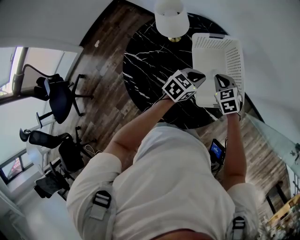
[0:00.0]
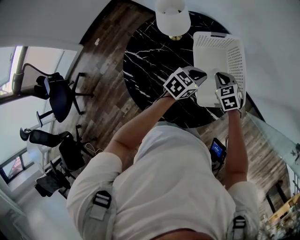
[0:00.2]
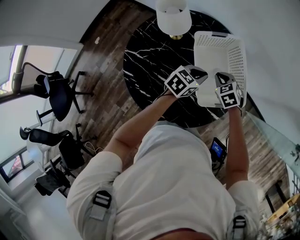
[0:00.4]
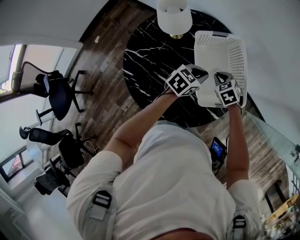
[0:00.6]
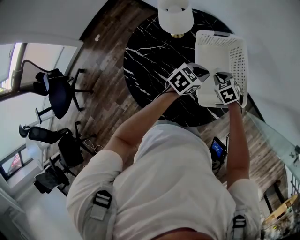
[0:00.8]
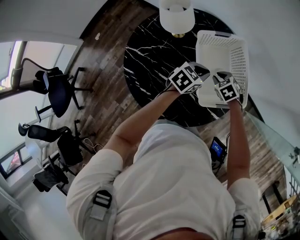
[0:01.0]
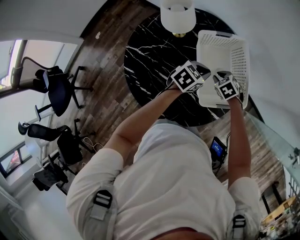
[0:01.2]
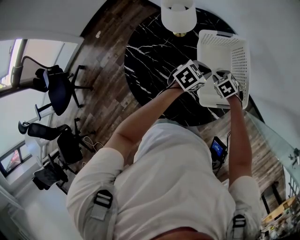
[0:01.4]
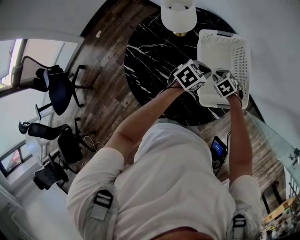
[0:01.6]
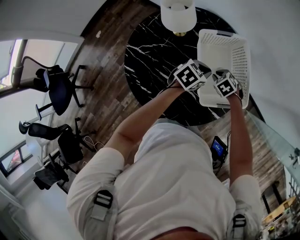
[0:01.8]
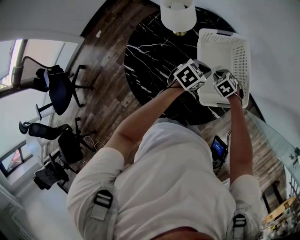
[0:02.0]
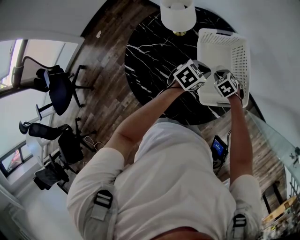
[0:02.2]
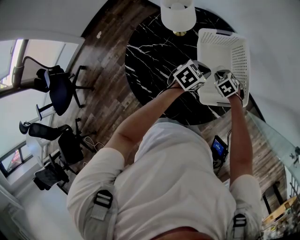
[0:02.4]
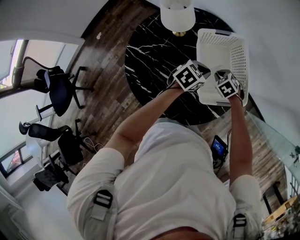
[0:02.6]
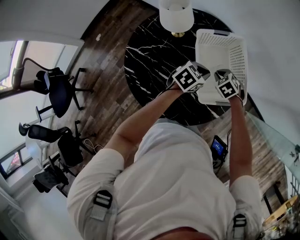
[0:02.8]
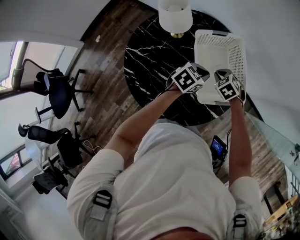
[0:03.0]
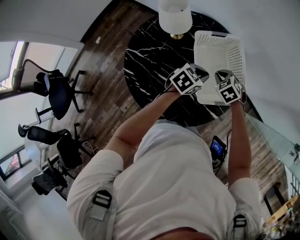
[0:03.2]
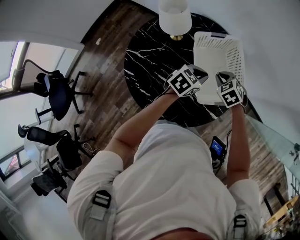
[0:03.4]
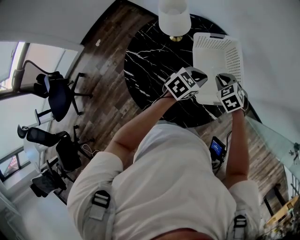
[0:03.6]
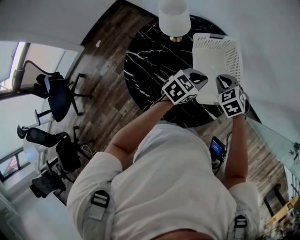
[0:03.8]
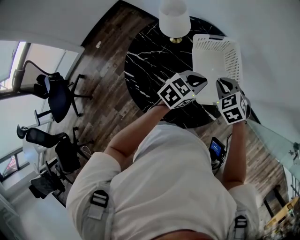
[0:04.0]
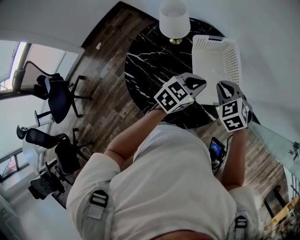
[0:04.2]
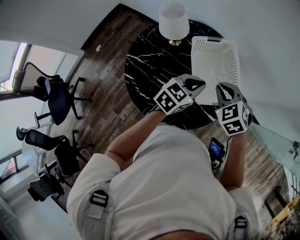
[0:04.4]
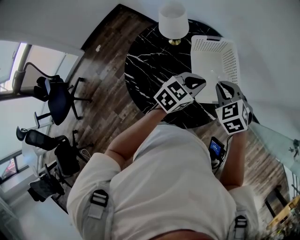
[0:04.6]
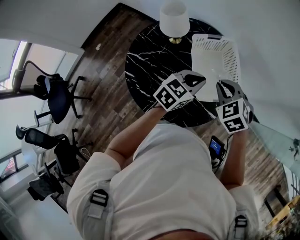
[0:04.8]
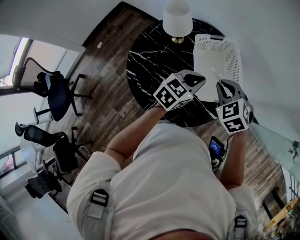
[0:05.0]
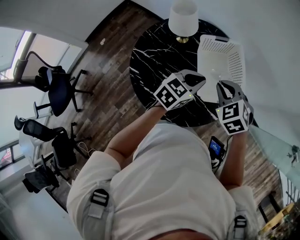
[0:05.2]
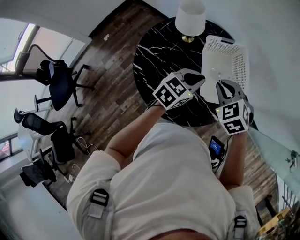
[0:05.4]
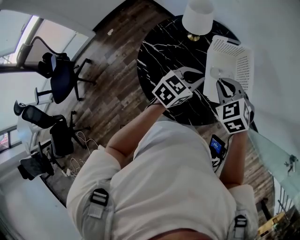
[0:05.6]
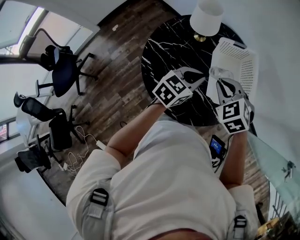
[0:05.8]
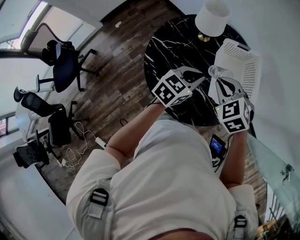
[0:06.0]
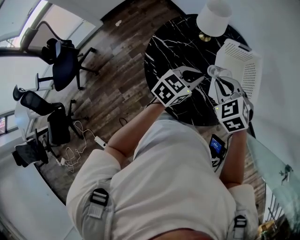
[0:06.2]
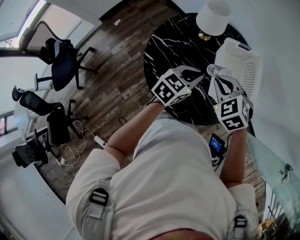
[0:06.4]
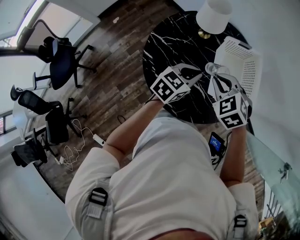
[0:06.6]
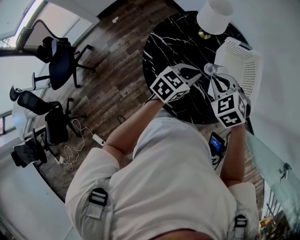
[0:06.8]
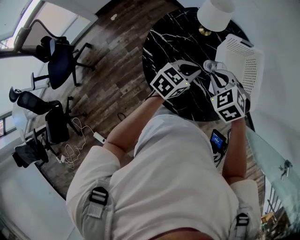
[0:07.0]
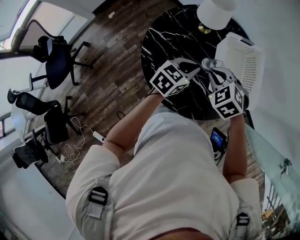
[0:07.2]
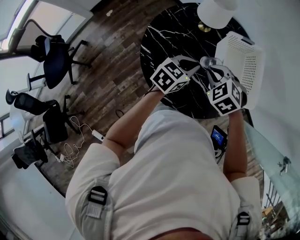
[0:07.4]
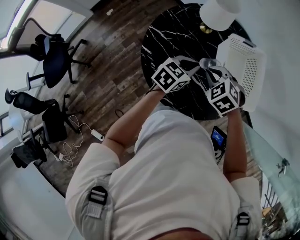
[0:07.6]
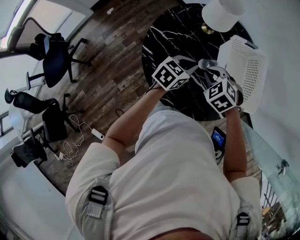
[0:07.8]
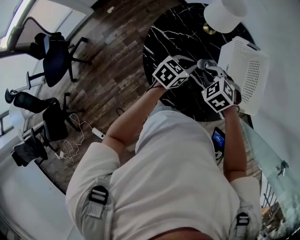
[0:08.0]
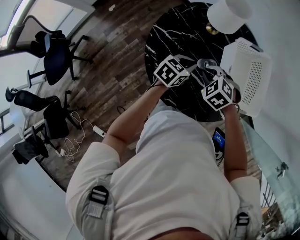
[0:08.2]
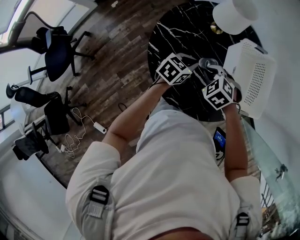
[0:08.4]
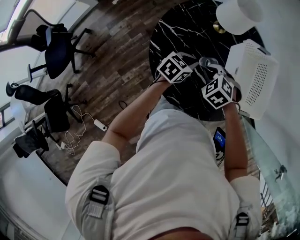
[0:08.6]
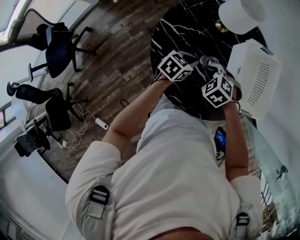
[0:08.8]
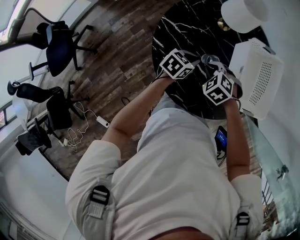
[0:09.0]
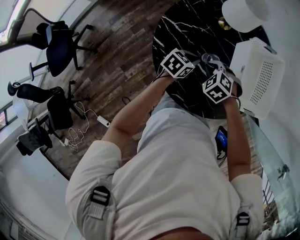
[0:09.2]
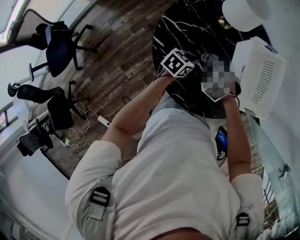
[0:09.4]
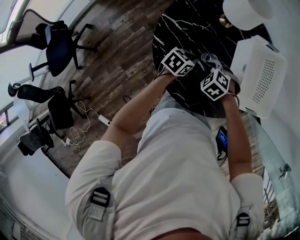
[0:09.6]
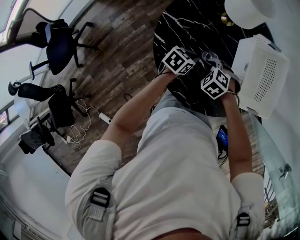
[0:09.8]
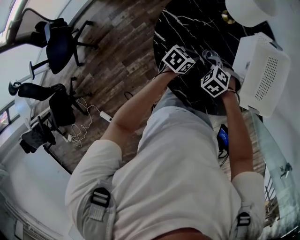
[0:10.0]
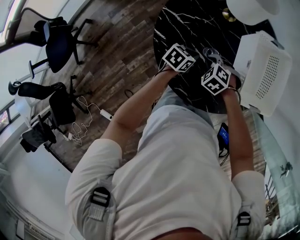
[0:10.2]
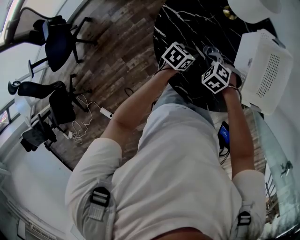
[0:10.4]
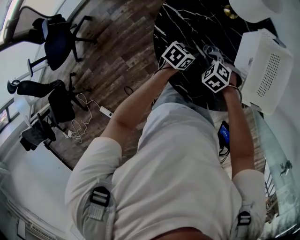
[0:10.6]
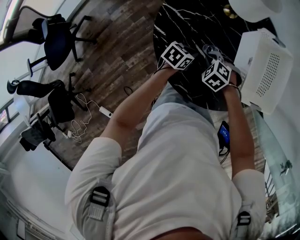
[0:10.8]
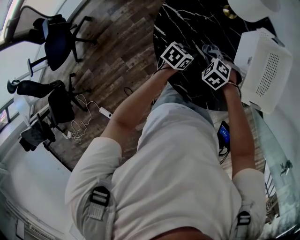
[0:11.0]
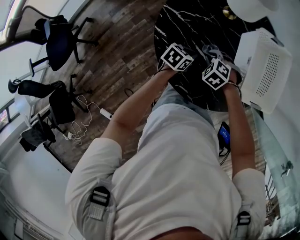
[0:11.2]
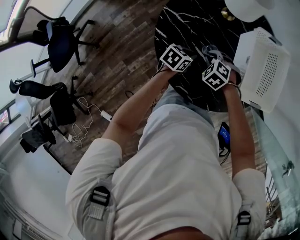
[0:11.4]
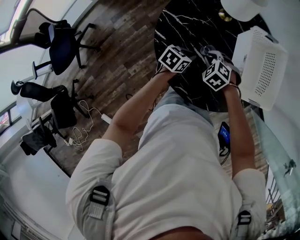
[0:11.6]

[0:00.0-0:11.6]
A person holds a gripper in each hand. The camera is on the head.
0:00.0 to 0:01.4: The right gripper goes roughly 10 cm downward, and rotates approximately 20 degrees.
0:01.4 to 0:02.8: The grippers move only a little.
0:02.8 to 0:04.4: The left gripper goes some 15 cm upward and backward. The right gripper moves upward, approximately 20 cm.
0:04.4 to 0:05.8: Both grippers travel together to the left, about 10 cm.
0:05.8 to 0:07.2: The left gripper travels to the left by about 5 cm, while the right gripper moves to the left and downward, approximately 10 cm.
0:07.2 to 0:08.8: The grippers both shift downward and to the left by roughly 15 cm.
0:08.8 to 0:10.2: The two grippers go roughly 10 cm downward.
0:10.2 to 0:11.6: There are only small adjustments of the grippers.

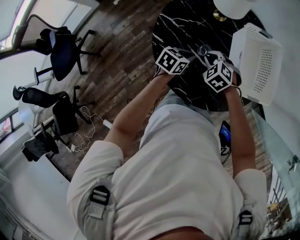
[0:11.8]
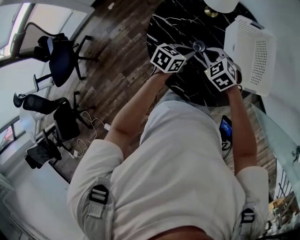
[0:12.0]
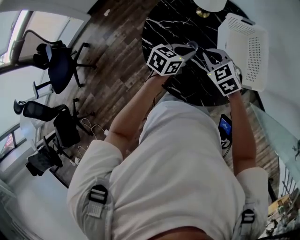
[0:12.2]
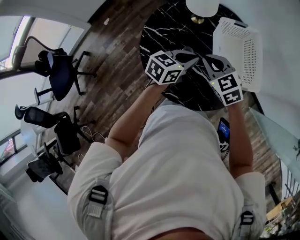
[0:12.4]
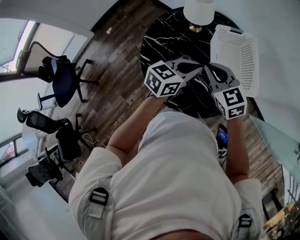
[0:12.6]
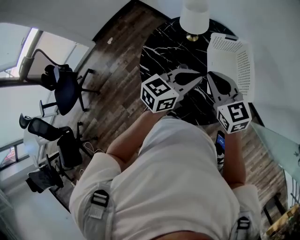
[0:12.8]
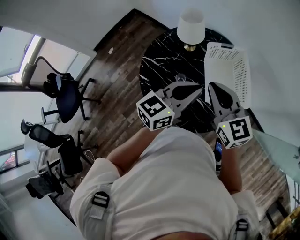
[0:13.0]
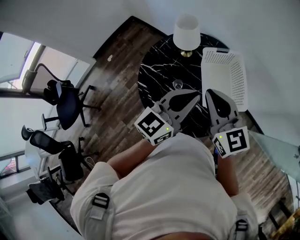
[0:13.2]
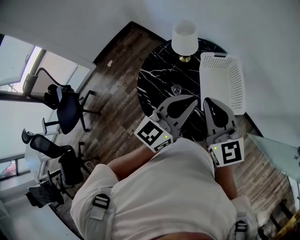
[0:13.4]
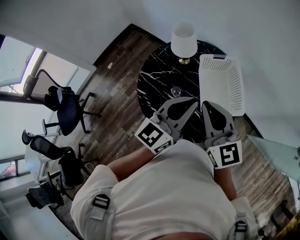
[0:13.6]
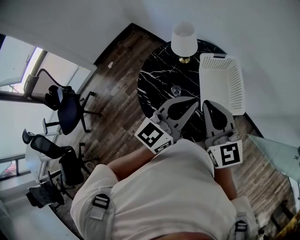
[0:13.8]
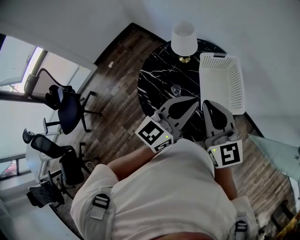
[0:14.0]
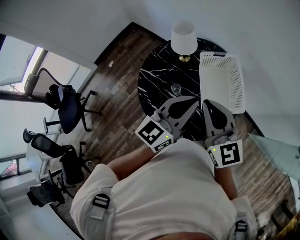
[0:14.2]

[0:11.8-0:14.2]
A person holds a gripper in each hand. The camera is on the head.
0:11.8 to 0:13.0: The right gripper is displaced upward by about 30 cm, and tilts its fingers approximately 50 degrees upward. The left gripper shifts about 35 cm upward and to the right, and tips its fingers upward by some 40 degrees.
0:13.0 to 0:14.2: The right gripper moves upward, some 5 cm; the left gripper shifts by about 5 cm.

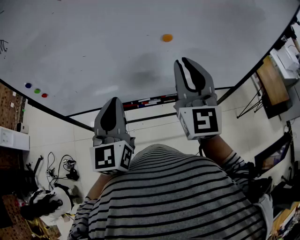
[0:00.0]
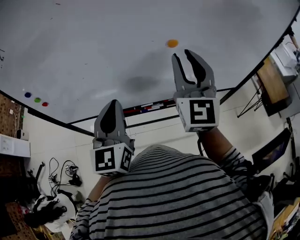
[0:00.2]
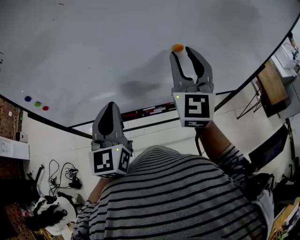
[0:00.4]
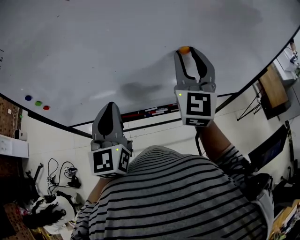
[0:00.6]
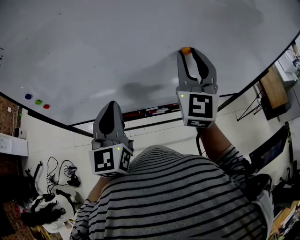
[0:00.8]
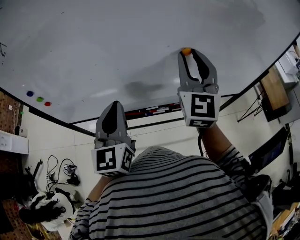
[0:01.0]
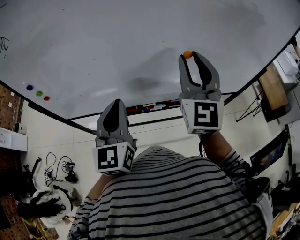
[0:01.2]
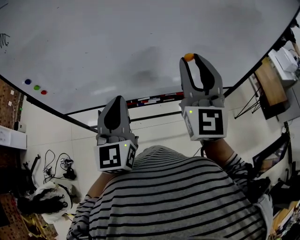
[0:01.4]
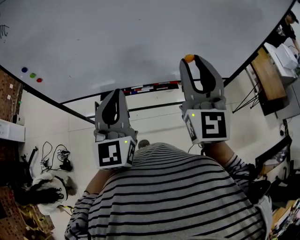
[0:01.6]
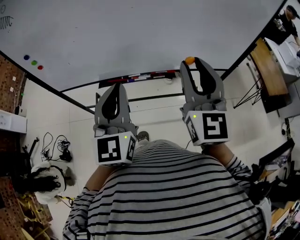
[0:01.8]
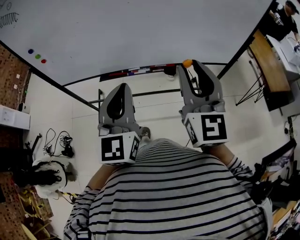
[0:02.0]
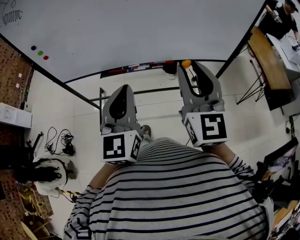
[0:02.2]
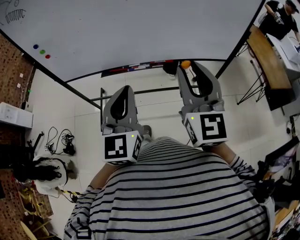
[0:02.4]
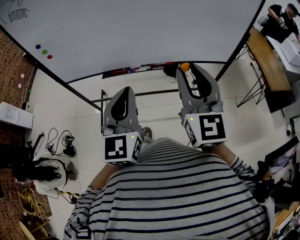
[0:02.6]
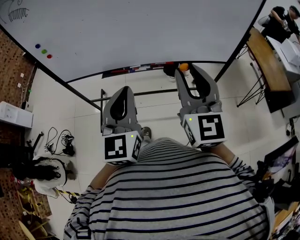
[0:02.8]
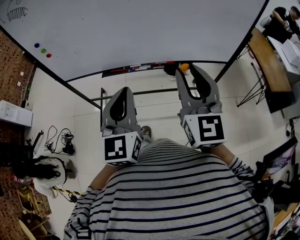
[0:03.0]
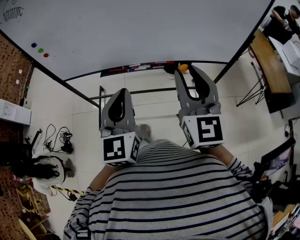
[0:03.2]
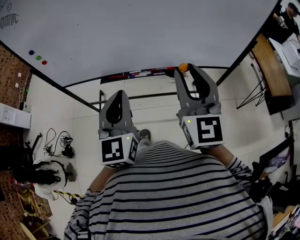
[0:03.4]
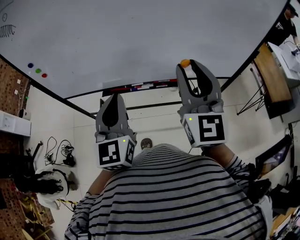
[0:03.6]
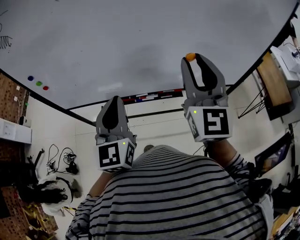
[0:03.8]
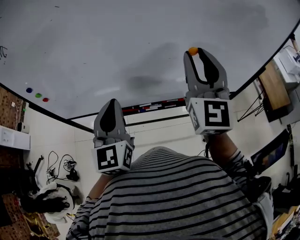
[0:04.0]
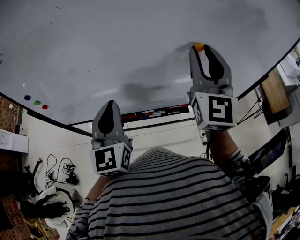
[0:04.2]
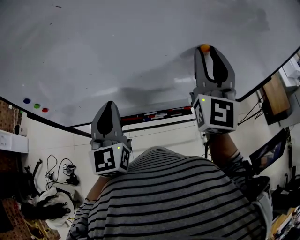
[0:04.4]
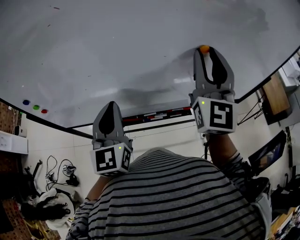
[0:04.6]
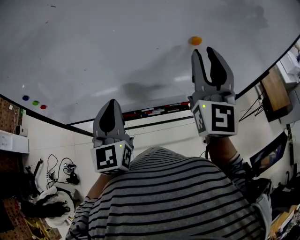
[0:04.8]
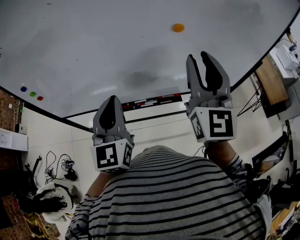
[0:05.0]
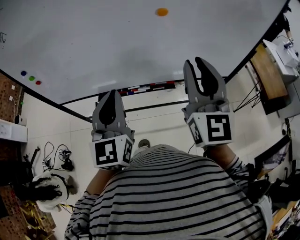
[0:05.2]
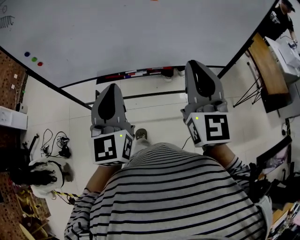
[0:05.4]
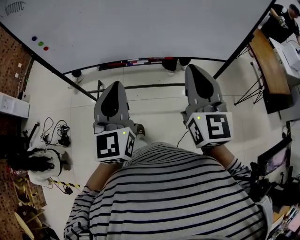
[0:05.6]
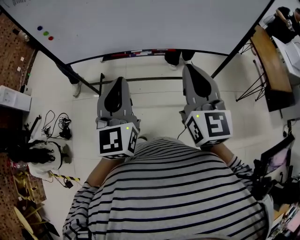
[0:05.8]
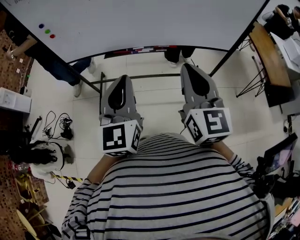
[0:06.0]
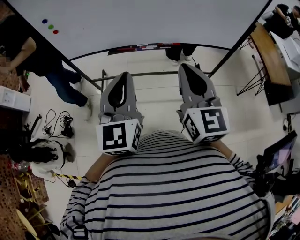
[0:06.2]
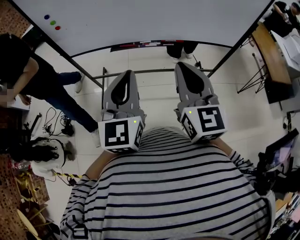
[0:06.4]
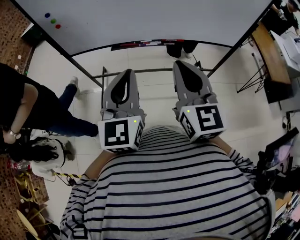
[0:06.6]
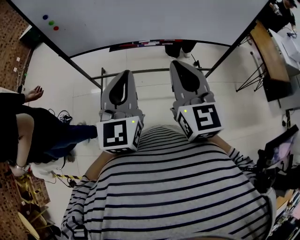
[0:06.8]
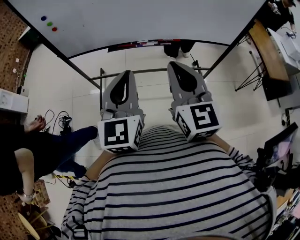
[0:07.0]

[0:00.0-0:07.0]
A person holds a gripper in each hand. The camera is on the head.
0:00.0 to 0:01.4: The right gripper reaches approximately 10 cm forward, then returns.
0:01.4 to 0:02.8: The left gripper goes some 20 cm backward and to the right. The right gripper is displaced backward by approximately 20 cm.
0:02.8 to 0:04.2: The left gripper moves forward and to the left, about 30 cm; the right gripper heads forward, covering about 30 cm.
0:04.2 to 0:05.6: The left gripper goes some 30 cm backward and to the right. Meanwhile the right gripper moves backward, about 30 cm, turns by approximately 20 degrees, and closes up.
0:05.6 to 0:07.0: The left gripper heads backward, covering approximately 5 cm; the right gripper travels to the left and backward by roughly 15 cm.

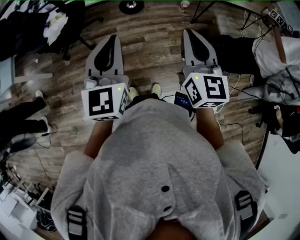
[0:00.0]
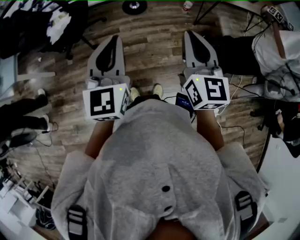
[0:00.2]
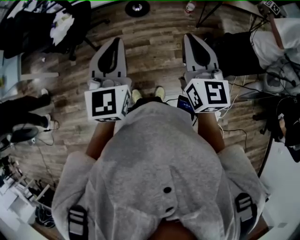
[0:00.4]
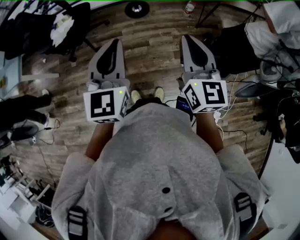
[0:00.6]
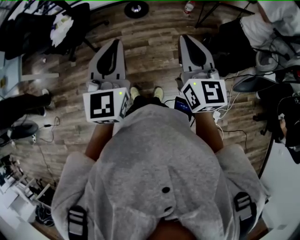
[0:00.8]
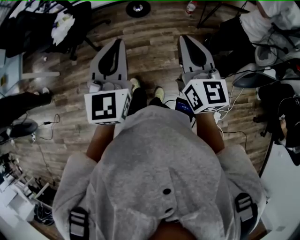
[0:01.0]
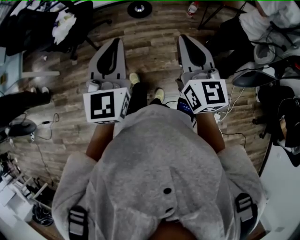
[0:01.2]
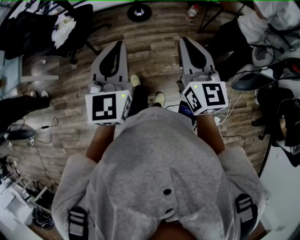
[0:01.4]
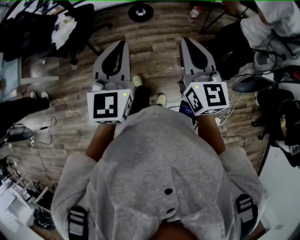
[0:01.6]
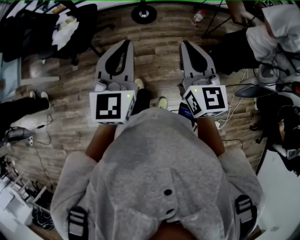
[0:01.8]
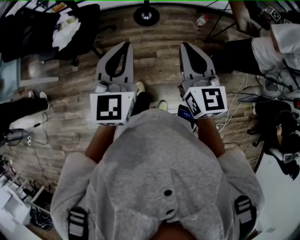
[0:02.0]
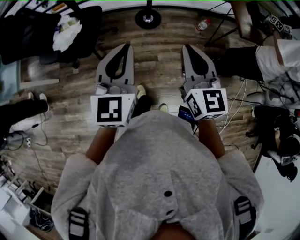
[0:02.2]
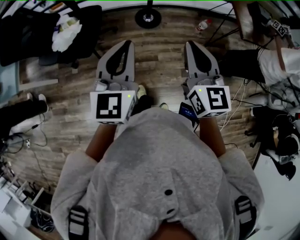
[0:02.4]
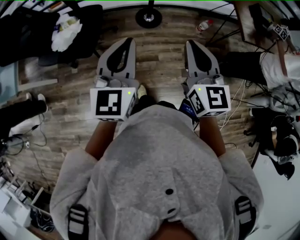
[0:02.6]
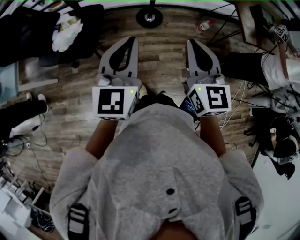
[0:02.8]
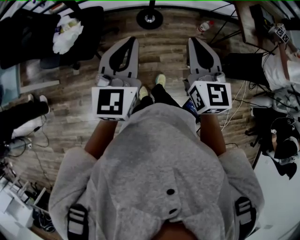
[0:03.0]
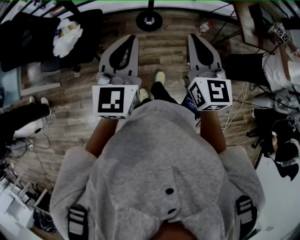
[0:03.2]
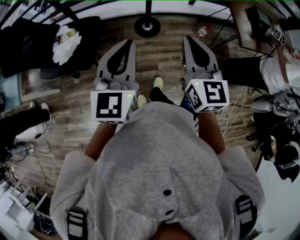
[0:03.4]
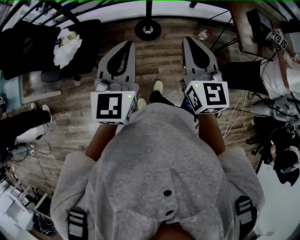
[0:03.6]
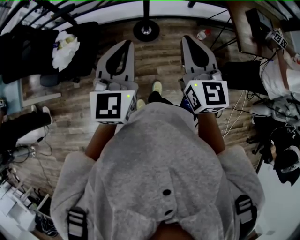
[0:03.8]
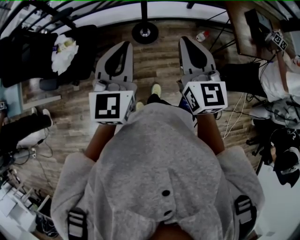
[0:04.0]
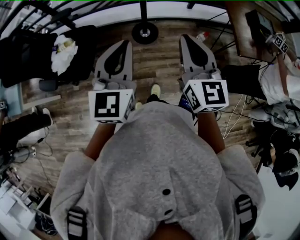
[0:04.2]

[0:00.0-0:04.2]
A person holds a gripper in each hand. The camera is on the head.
0:01.4 to 0:02.8: Both grippers travel together forward and to the left, approximately 30 cm.
0:02.8 to 0:04.2: Both grippers move forward and to the right, approximately 15 cm.
